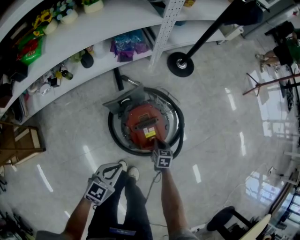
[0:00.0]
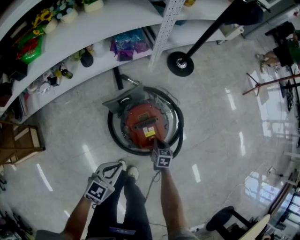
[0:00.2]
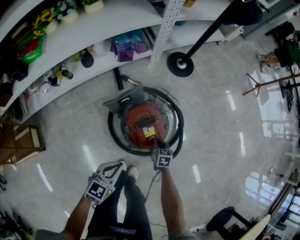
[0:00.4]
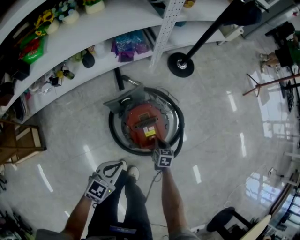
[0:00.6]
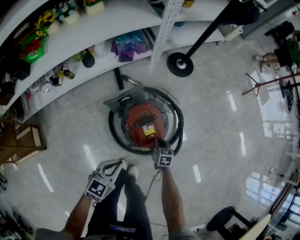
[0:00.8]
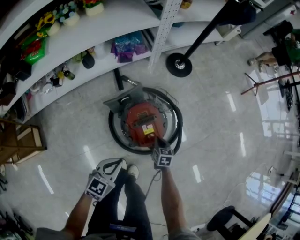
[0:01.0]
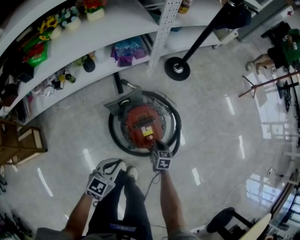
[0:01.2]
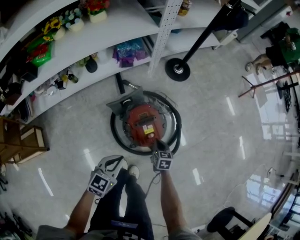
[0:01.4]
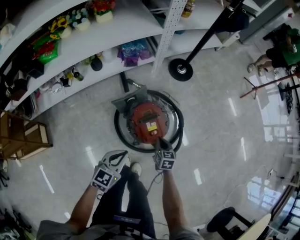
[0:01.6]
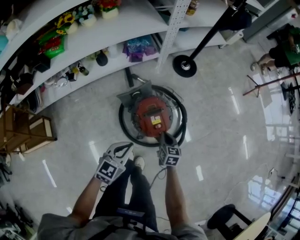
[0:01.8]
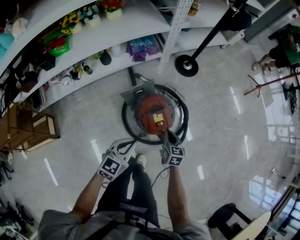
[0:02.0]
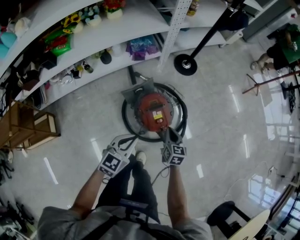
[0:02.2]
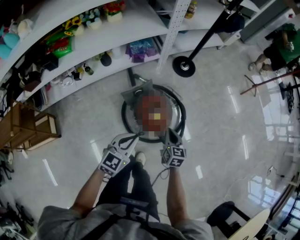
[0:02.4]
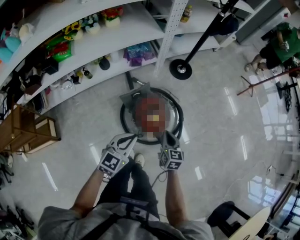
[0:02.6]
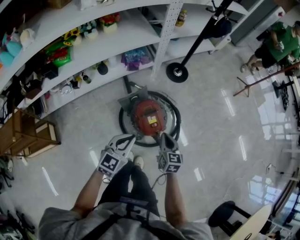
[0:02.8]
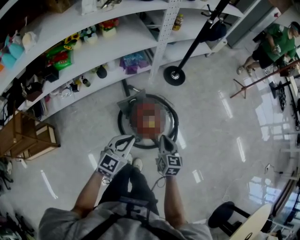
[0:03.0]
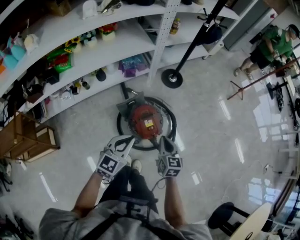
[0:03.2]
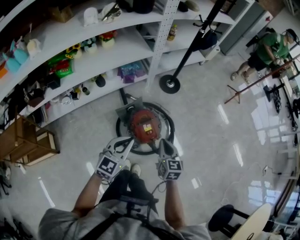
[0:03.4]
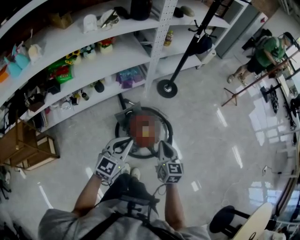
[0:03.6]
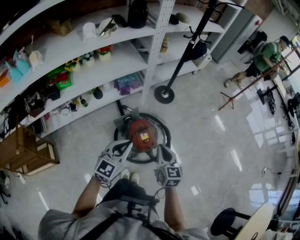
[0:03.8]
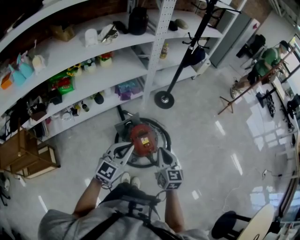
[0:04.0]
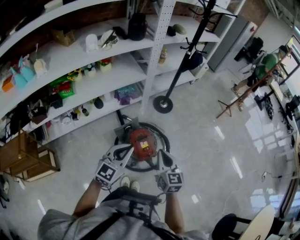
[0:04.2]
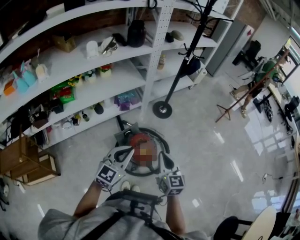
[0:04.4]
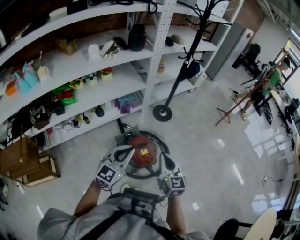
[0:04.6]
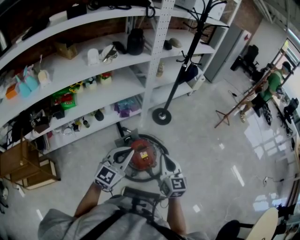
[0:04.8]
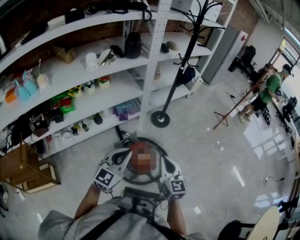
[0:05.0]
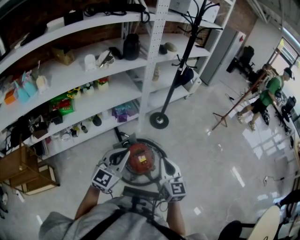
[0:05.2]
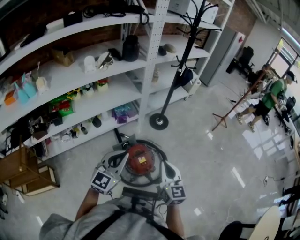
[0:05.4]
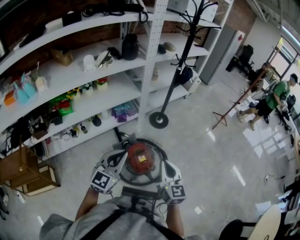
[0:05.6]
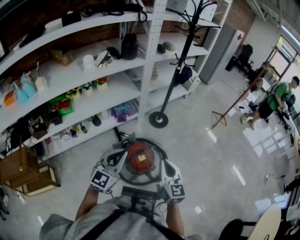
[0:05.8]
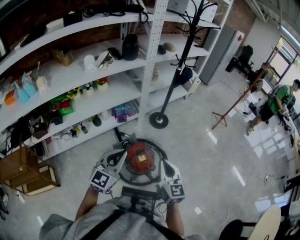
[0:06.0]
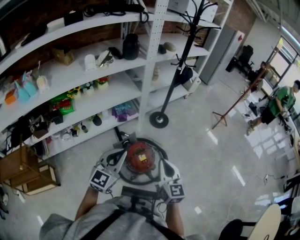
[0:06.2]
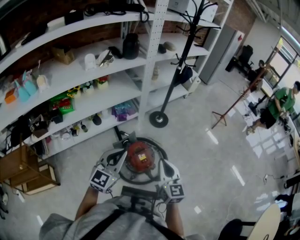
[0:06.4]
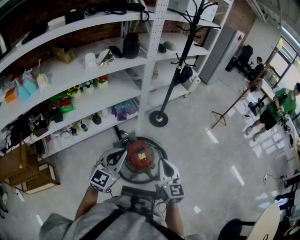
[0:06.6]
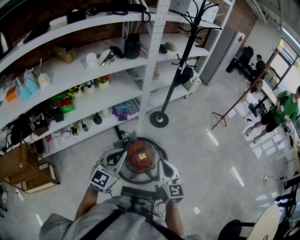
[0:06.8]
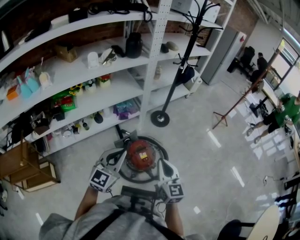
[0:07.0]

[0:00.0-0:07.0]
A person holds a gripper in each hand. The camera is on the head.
0:00.0 to 0:01.4: The left gripper travels upward by roughly 5 cm; the right gripper moves upward, roughly 10 cm.
0:01.4 to 0:02.8: The left gripper moves upward, some 15 cm. The right gripper moves upward, some 25 cm.
0:02.8 to 0:04.2: The two grippers go roughly 20 cm upward.
0:04.2 to 0:05.6: The grippers both shift upward by about 5 cm.
0:05.6 to 0:07.0: There are only small adjustments of the grippers.

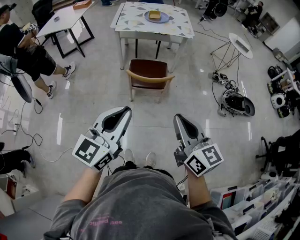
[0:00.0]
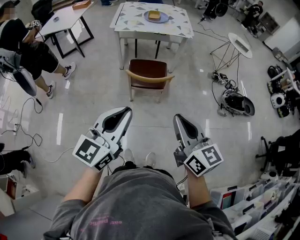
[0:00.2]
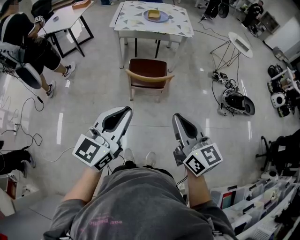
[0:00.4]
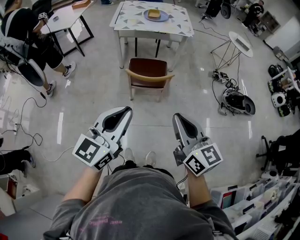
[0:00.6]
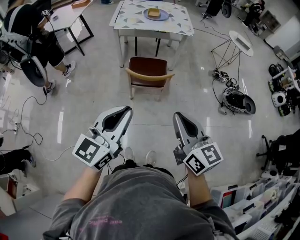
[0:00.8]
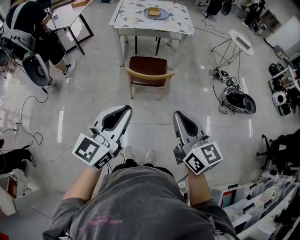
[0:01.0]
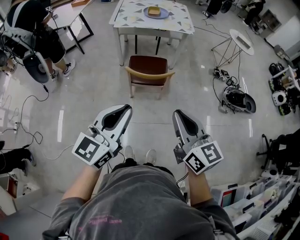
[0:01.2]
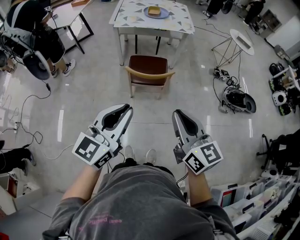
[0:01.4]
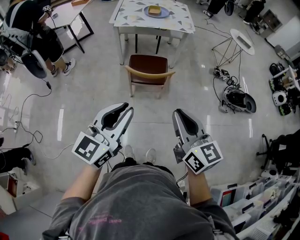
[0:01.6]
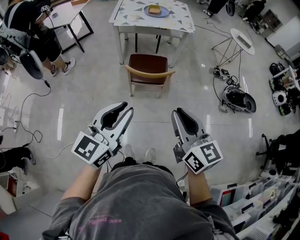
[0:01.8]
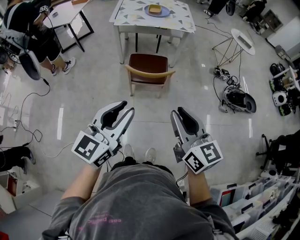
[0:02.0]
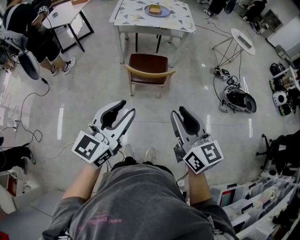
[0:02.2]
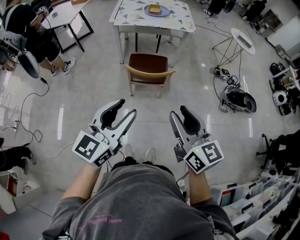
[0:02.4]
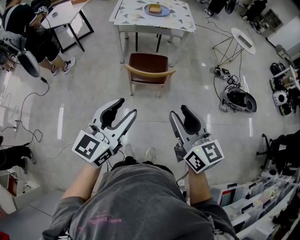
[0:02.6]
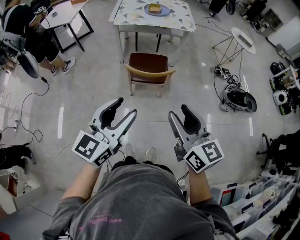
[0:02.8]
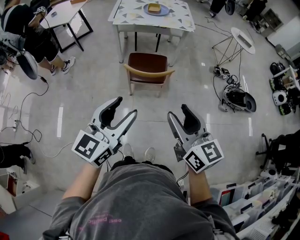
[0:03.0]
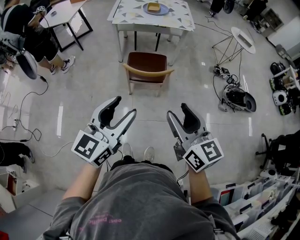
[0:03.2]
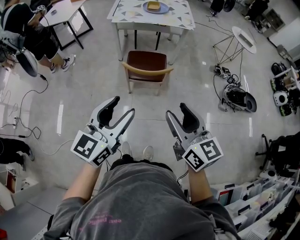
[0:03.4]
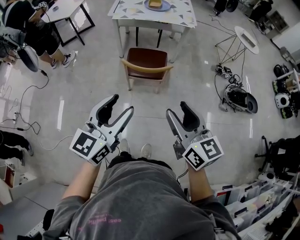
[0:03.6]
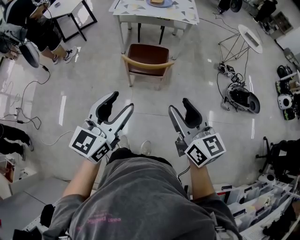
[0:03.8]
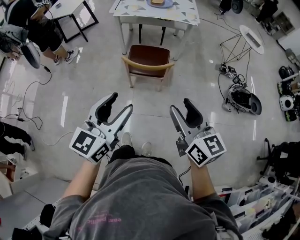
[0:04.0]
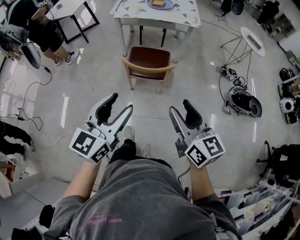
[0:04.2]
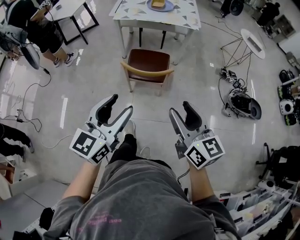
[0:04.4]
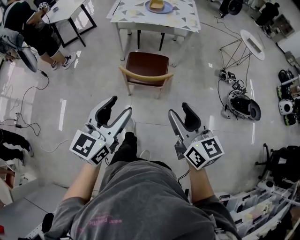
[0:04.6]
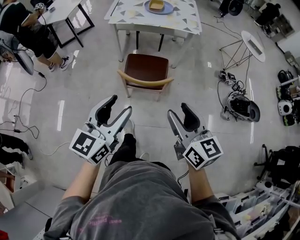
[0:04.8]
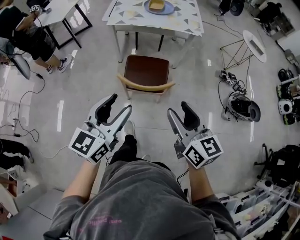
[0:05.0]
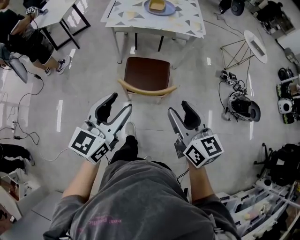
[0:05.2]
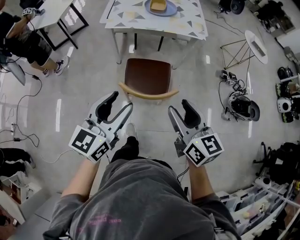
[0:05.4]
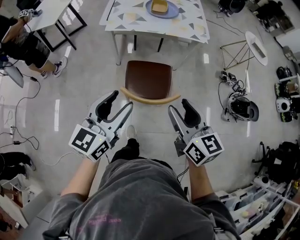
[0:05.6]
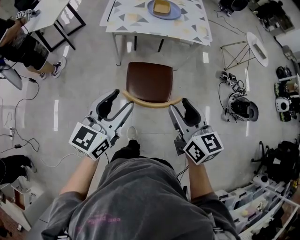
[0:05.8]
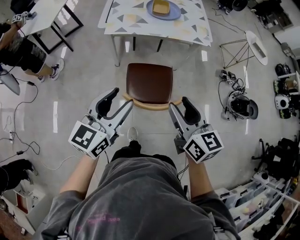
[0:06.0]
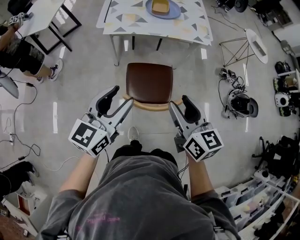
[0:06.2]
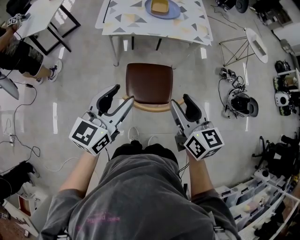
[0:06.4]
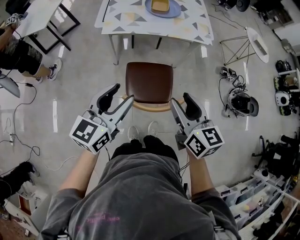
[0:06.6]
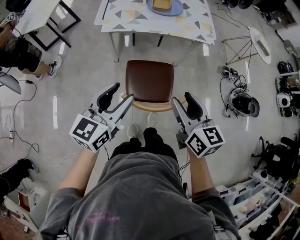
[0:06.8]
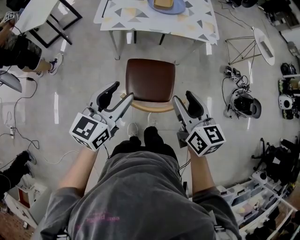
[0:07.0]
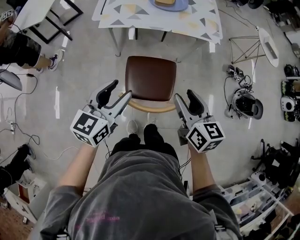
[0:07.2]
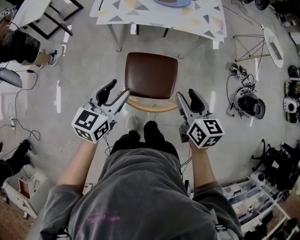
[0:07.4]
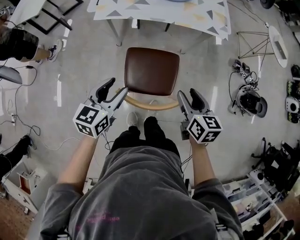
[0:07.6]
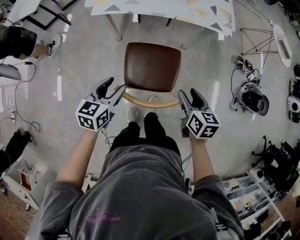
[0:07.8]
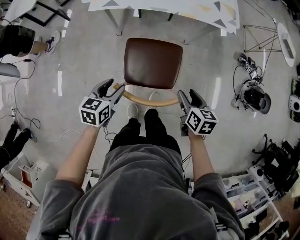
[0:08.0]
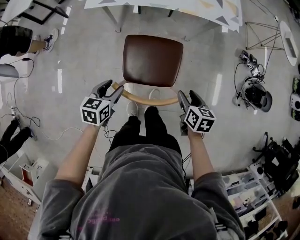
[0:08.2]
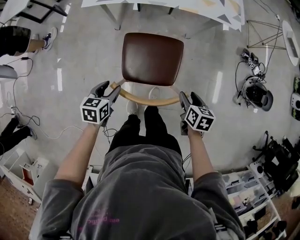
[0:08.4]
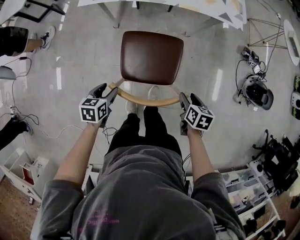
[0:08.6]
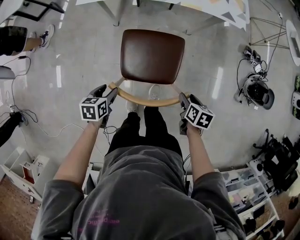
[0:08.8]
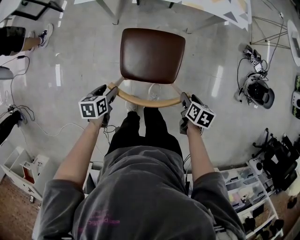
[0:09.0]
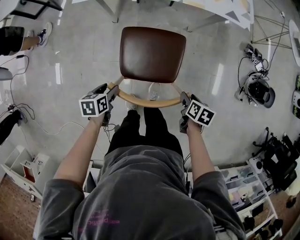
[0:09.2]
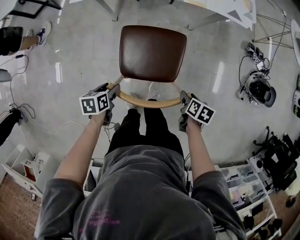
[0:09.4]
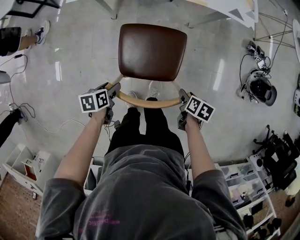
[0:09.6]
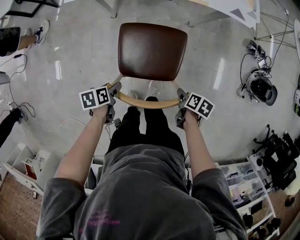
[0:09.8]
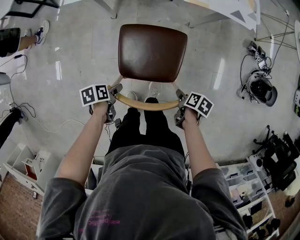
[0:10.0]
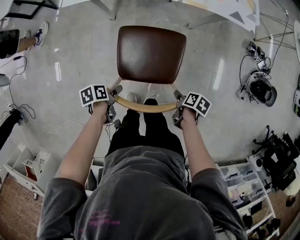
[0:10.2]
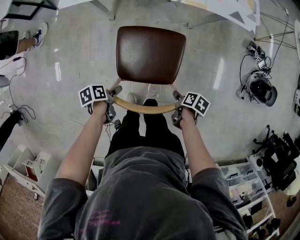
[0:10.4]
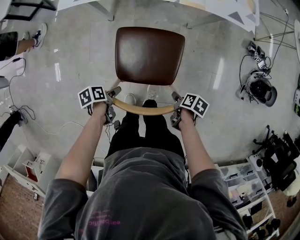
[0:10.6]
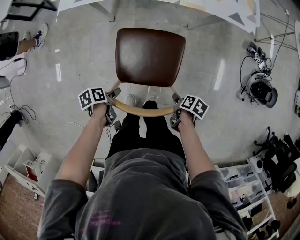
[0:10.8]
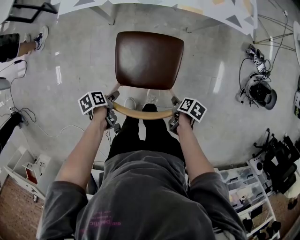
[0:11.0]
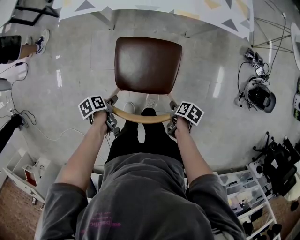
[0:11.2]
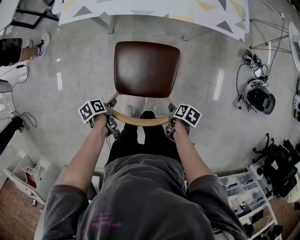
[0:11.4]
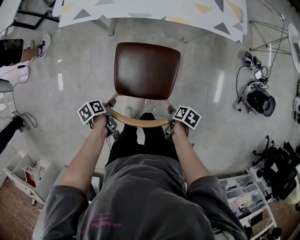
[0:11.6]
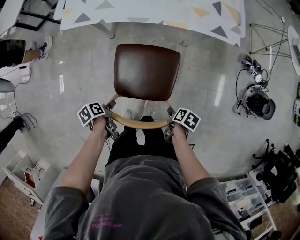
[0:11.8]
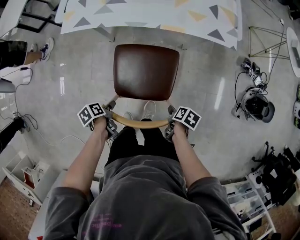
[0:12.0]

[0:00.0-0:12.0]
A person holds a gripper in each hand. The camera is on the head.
0:00.0 to 0:01.6: There are only small adjustments of the grippers.
0:01.6 to 0:03.0: The left gripper opens; the right gripper opens up.
0:03.0 to 0:04.4: The right gripper moves to the right and forward, roughly 10 cm, while the left gripper travels to the right by roughly 5 cm.
0:04.4 to 0:06.0: The two grippers go some 35 cm forward.
0:06.0 to 0:07.6: The left gripper travels downward and forward by some 20 cm, and rotates about 20 degrees, while the right gripper travels downward, forward and to the right by some 25 cm.
0:07.6 to 0:09.0: The two grippers go roughly 25 cm downward. The left gripper points its fingers roughly 30 degrees further downward, while the right gripper angles its fingers downward, by approximately 30 degrees.
0:09.0 to 0:10.4: The grippers both shift downward by approximately 10 cm. The left gripper turns by about 40 degrees. The right gripper turns by some 30 degrees.
0:10.4 to 0:12.0: The right gripper shifts by some 5 cm.

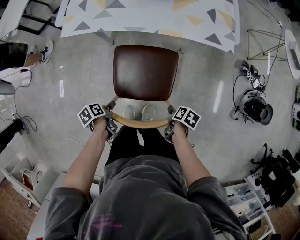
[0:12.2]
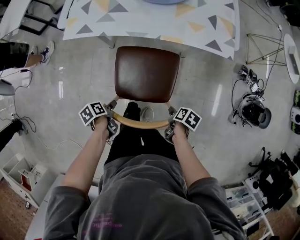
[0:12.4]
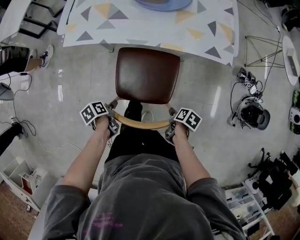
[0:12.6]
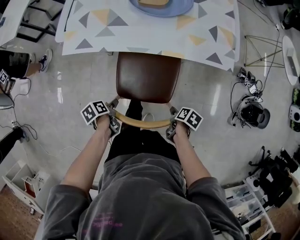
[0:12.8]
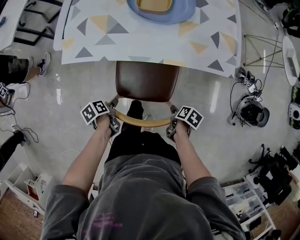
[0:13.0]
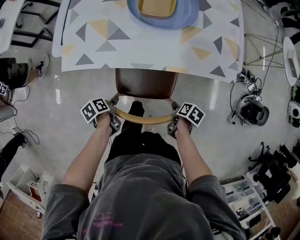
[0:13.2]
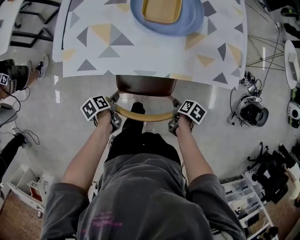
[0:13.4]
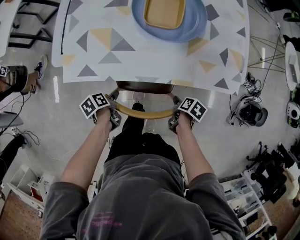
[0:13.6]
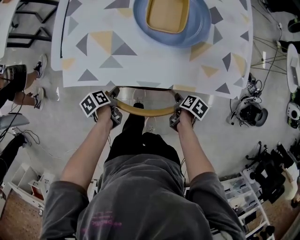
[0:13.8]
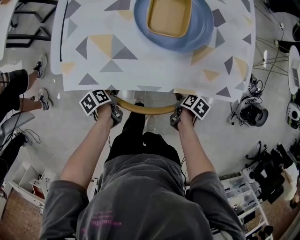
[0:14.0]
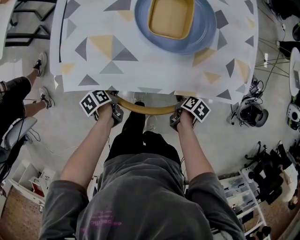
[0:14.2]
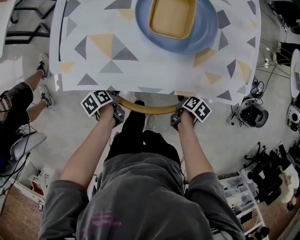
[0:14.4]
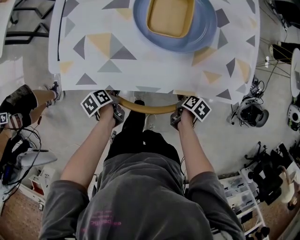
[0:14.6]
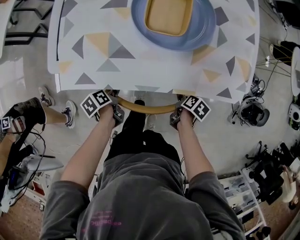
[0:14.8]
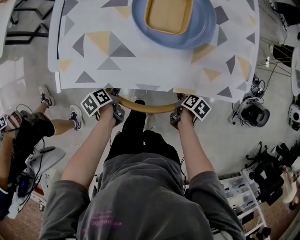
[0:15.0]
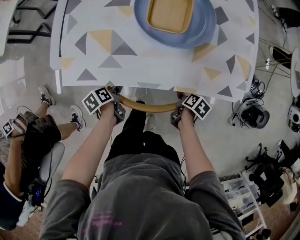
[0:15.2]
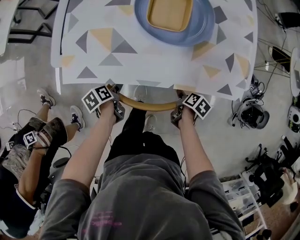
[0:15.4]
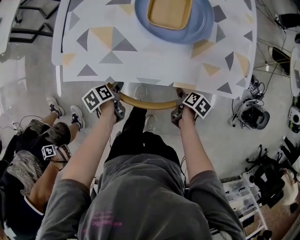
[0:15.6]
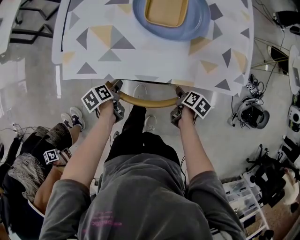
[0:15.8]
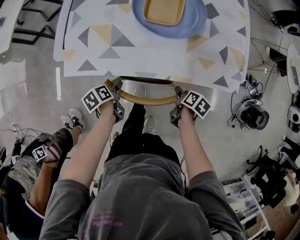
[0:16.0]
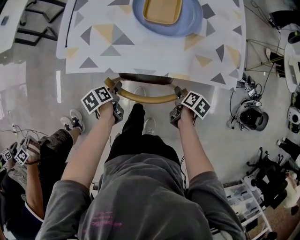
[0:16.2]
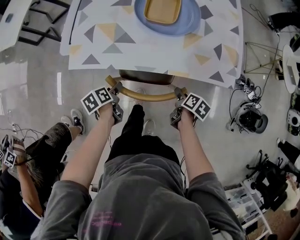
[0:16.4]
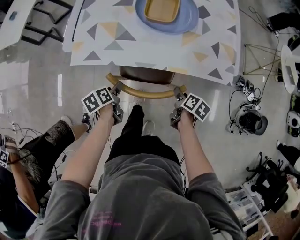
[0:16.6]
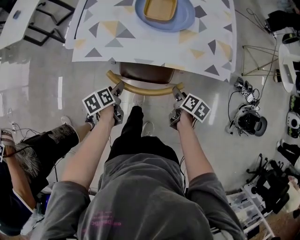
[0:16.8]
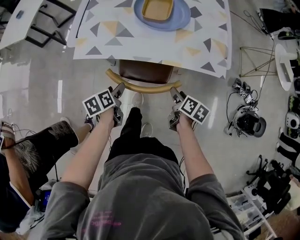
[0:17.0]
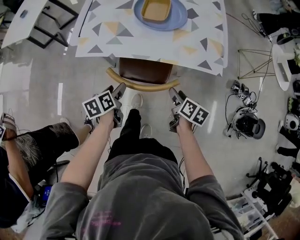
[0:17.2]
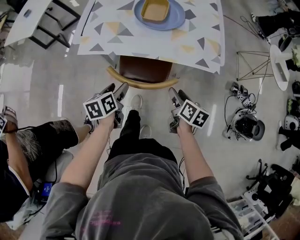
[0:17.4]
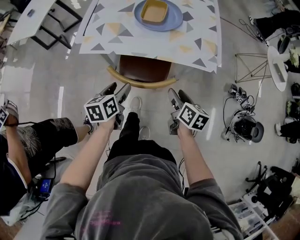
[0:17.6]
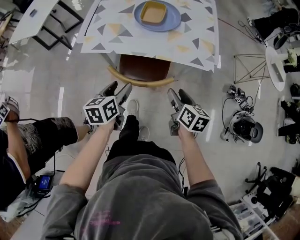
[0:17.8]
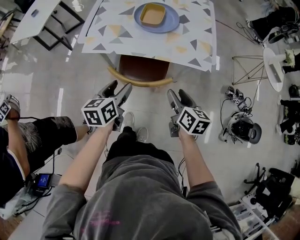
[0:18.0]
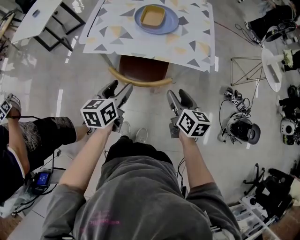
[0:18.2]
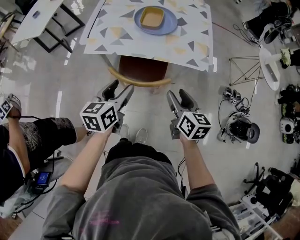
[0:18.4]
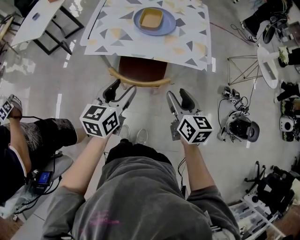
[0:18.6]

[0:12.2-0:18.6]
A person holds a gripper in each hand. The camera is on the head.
0:12.2 to 0:13.8: The right gripper shifts by about 25 cm. The left gripper changes place by approximately 25 cm.
0:13.8 to 0:15.4: There are only small adjustments of the grippers.
0:15.4 to 0:17.0: The left gripper is displaced upward and backward by roughly 15 cm, and turns by about 20 degrees. Meanwhile the right gripper moves upward, about 15 cm, and rotates approximately 30 degrees.
0:17.0 to 0:18.6: The two grippers go some 25 cm upward. The right gripper changes its angle by approximately 40 degrees; the left gripper turns by some 40 degrees.
